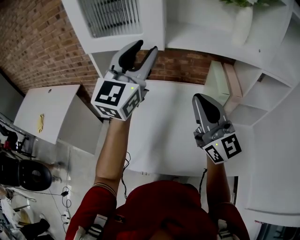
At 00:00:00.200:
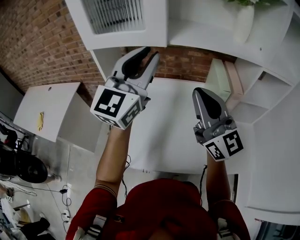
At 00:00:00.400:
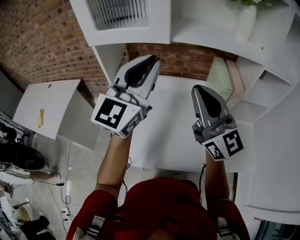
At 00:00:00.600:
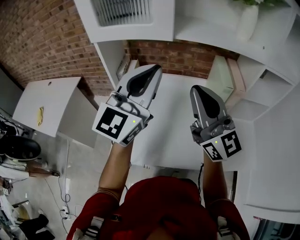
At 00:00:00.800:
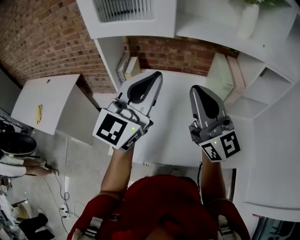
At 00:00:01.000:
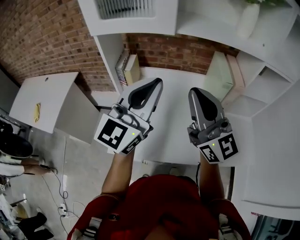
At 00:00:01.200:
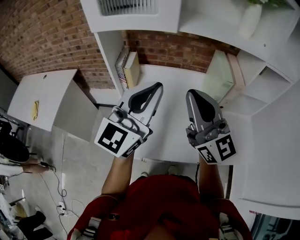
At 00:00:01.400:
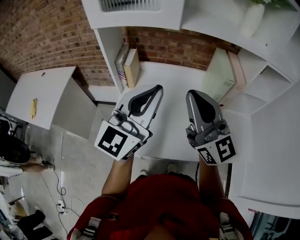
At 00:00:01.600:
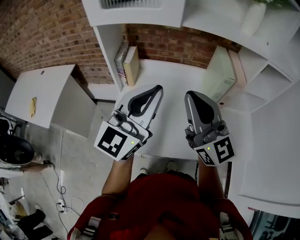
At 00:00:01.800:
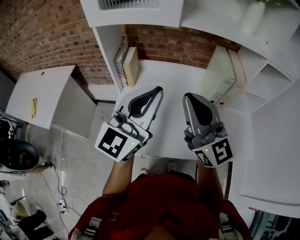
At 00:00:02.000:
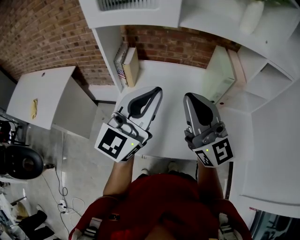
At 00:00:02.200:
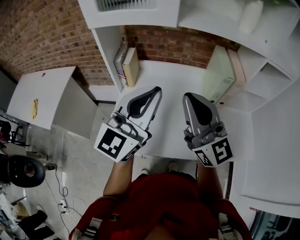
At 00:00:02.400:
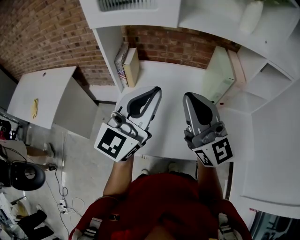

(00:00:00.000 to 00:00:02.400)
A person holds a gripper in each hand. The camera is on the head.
00:00:00.000 - 00:00:01.200: The right gripper heads to the left, covering about 5 cm. Meanwhile the left gripper is displaced backward and downward by roughly 15 cm, and closes its fingers.
00:00:01.200 - 00:00:02.400: There are only small adjustments of the grippers.

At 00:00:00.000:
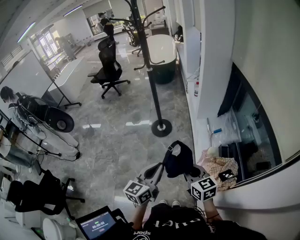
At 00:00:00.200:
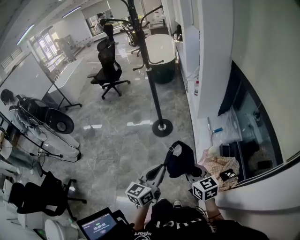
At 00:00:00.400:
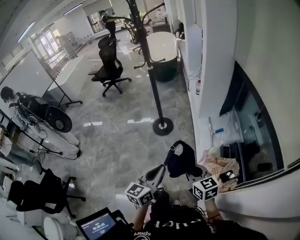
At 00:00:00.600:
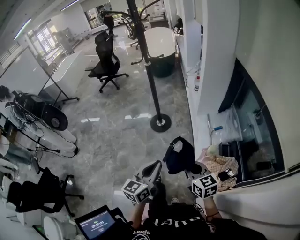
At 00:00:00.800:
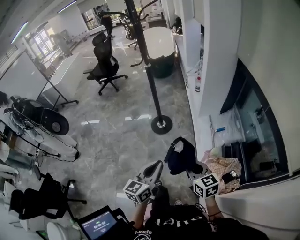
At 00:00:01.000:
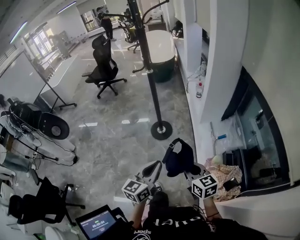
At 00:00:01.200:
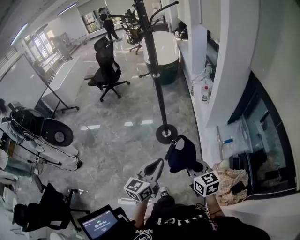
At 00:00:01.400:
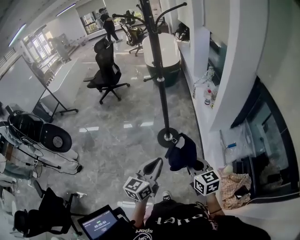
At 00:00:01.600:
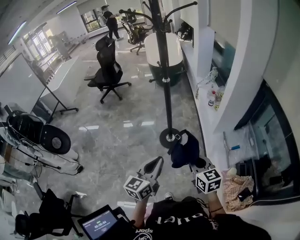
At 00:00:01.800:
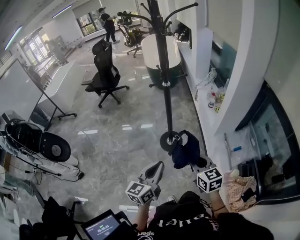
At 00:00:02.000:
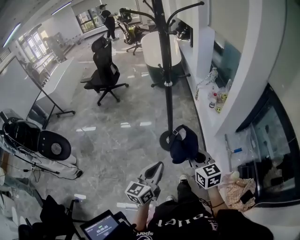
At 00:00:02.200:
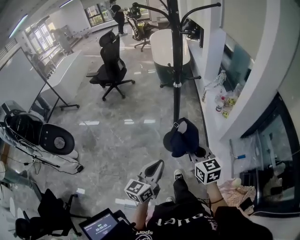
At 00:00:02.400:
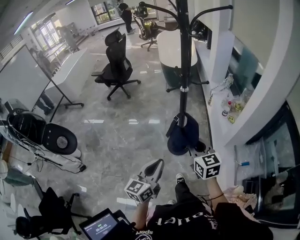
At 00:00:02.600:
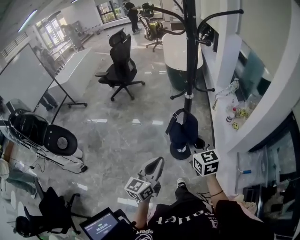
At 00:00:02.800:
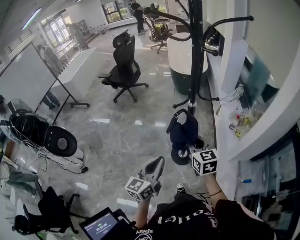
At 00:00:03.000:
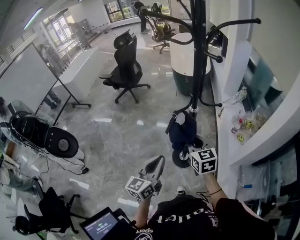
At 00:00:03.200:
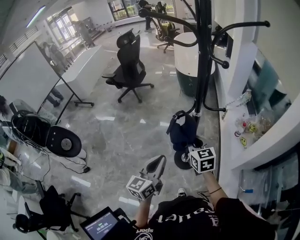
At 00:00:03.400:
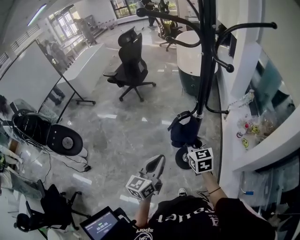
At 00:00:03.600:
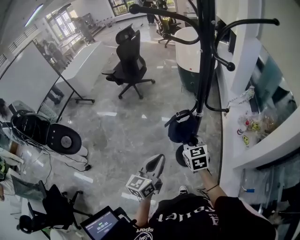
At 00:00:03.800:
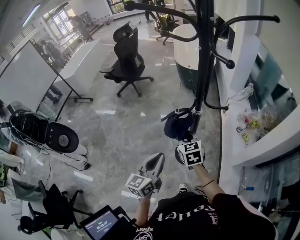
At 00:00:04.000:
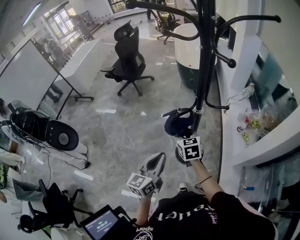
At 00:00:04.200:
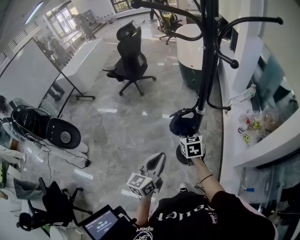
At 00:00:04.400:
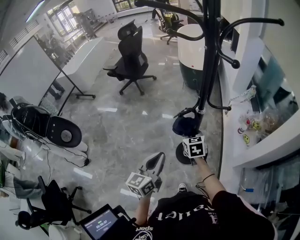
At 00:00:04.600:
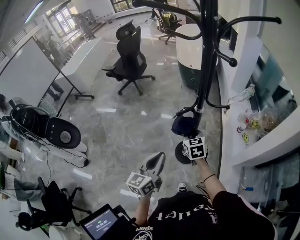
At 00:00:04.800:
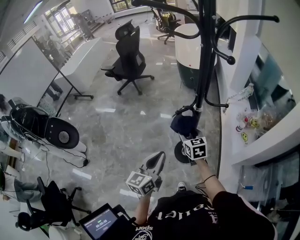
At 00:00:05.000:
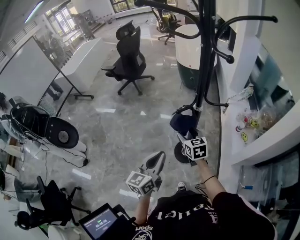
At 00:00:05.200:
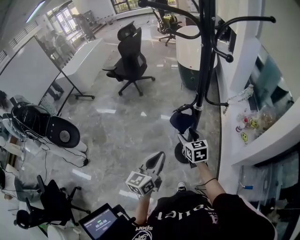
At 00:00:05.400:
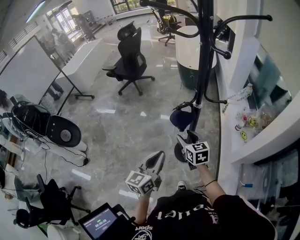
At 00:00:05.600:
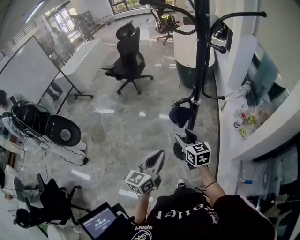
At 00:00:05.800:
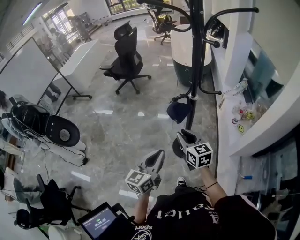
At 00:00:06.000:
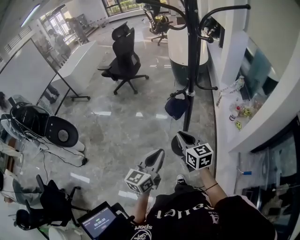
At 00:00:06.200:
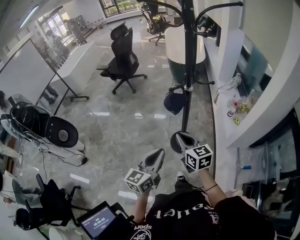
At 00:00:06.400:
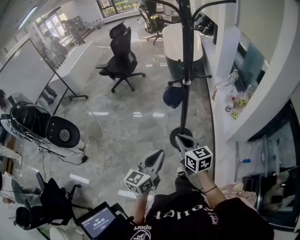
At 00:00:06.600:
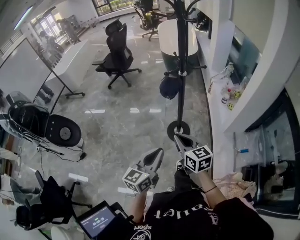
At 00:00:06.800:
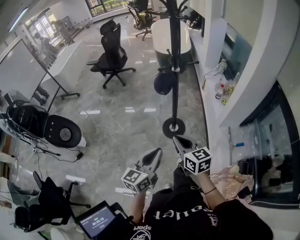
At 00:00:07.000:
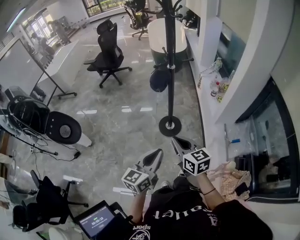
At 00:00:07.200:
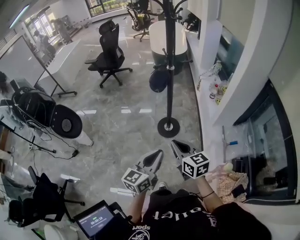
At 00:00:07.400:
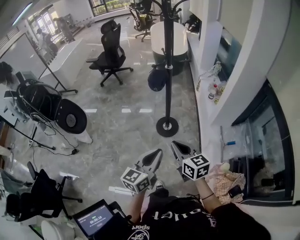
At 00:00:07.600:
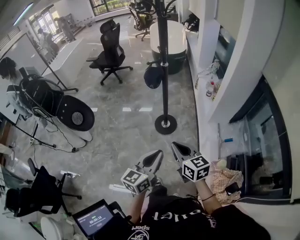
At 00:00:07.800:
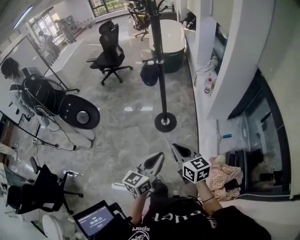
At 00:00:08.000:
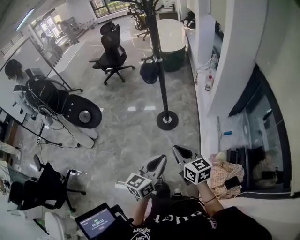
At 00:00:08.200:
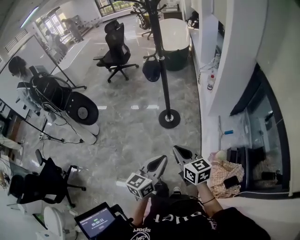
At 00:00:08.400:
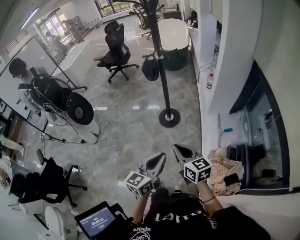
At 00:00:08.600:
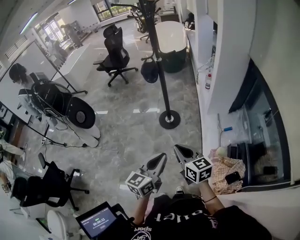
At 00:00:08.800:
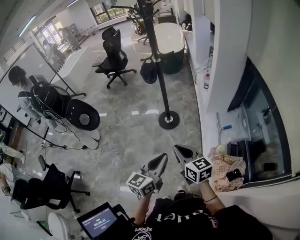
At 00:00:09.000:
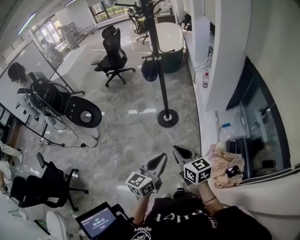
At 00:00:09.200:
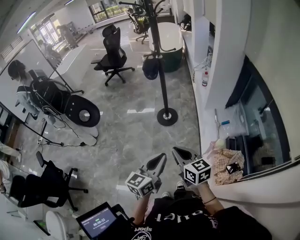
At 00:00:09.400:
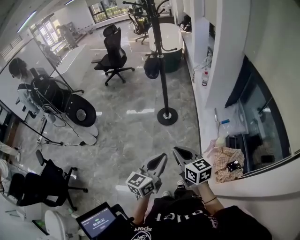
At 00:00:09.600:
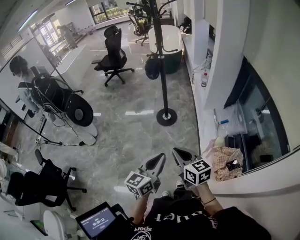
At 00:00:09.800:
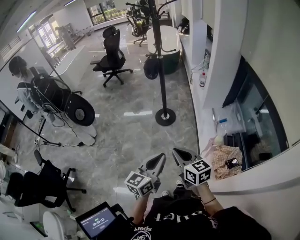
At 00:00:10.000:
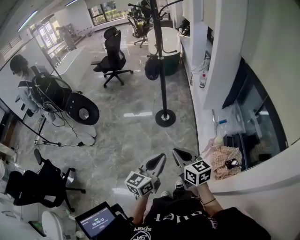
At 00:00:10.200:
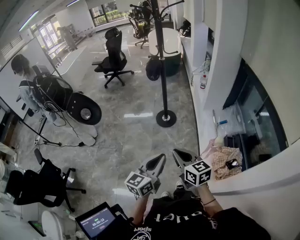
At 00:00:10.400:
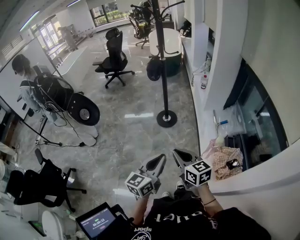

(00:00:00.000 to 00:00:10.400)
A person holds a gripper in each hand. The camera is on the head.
00:00:00.000 - 00:00:01.400: Both grippers travel together forward and to the left, some 30 cm.
00:00:01.400 - 00:00:03.000: The two grippers go some 35 cm forward.
00:00:03.000 - 00:00:04.400: The left gripper shifts by some 5 cm. Meanwhile the right gripper goes approximately 15 cm downward and forward.
00:00:04.400 - 00:00:06.000: The right gripper is displaced backward and upward by roughly 20 cm, rotates some 20 degrees, and opens, then closes once more. Meanwhile the left gripper travels backward by approximately 10 cm.
00:00:06.000 - 00:00:07.400: Both grippers move backward, about 30 cm.
00:00:07.400 - 00:00:09.000: The left gripper goes some 25 cm backward and to the right; the right gripper goes approximately 20 cm backward.
00:00:09.000 - 00:00:10.400: The two grippers go roughly 10 cm backward and to the left.

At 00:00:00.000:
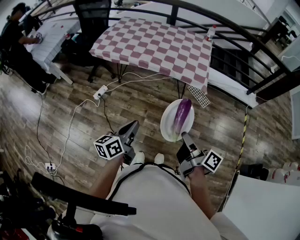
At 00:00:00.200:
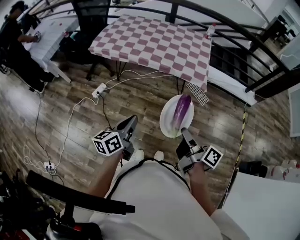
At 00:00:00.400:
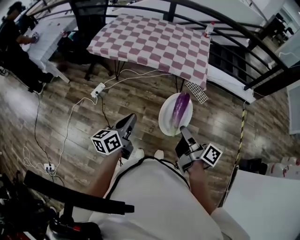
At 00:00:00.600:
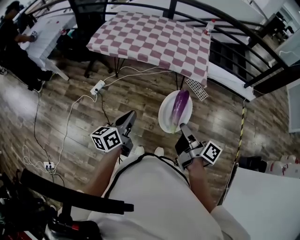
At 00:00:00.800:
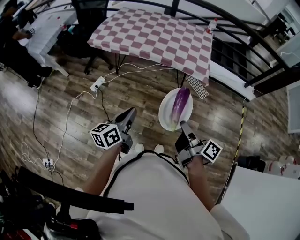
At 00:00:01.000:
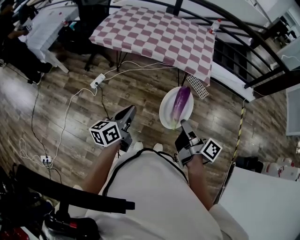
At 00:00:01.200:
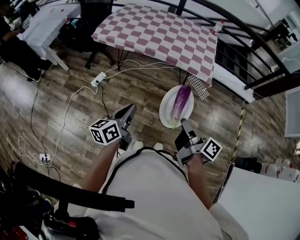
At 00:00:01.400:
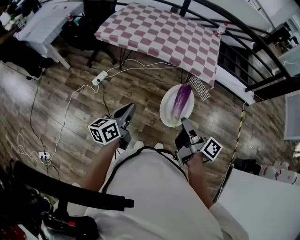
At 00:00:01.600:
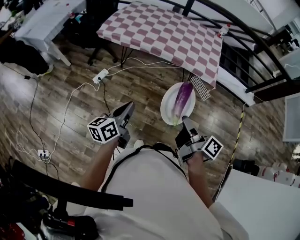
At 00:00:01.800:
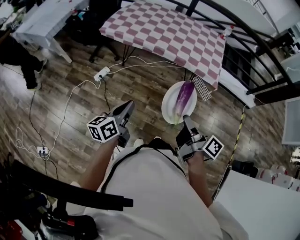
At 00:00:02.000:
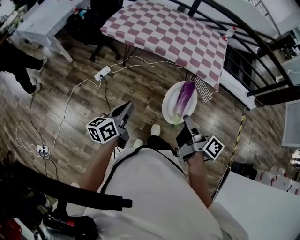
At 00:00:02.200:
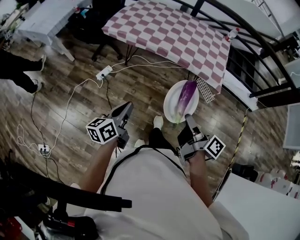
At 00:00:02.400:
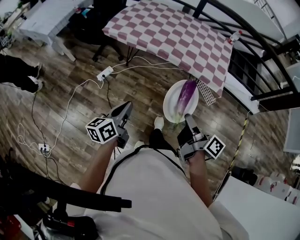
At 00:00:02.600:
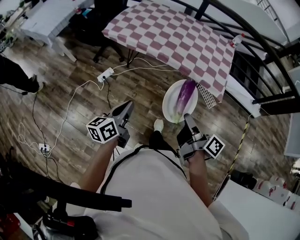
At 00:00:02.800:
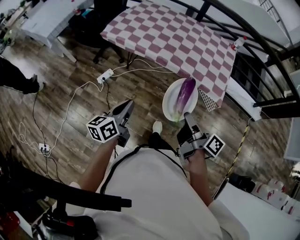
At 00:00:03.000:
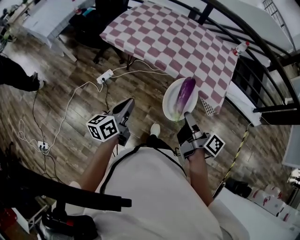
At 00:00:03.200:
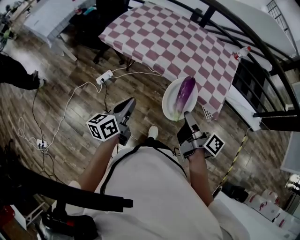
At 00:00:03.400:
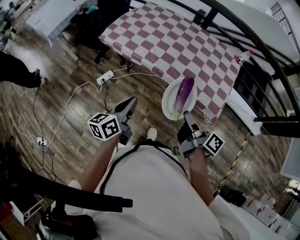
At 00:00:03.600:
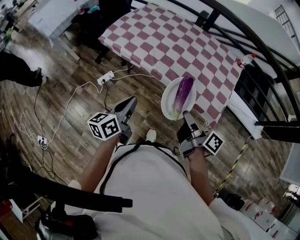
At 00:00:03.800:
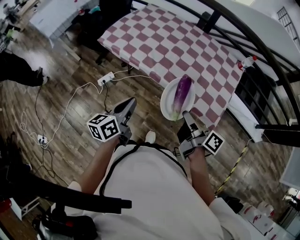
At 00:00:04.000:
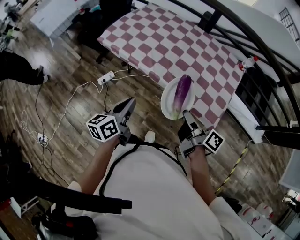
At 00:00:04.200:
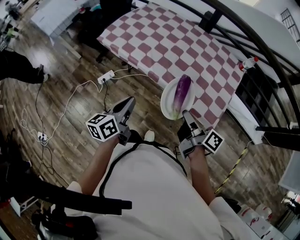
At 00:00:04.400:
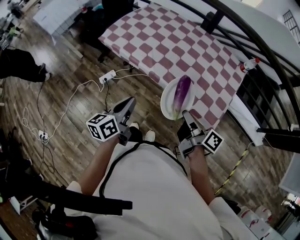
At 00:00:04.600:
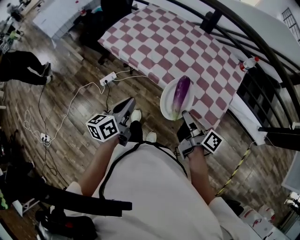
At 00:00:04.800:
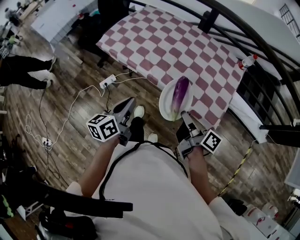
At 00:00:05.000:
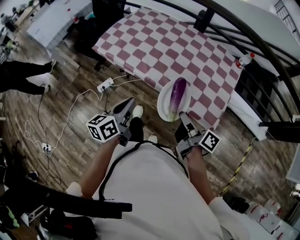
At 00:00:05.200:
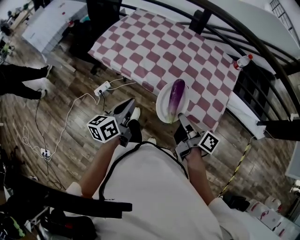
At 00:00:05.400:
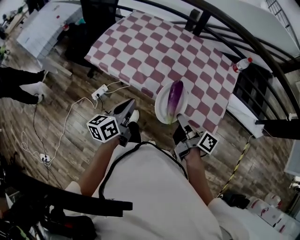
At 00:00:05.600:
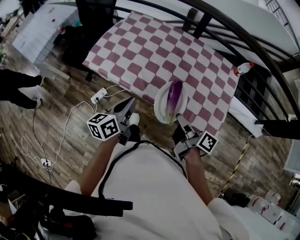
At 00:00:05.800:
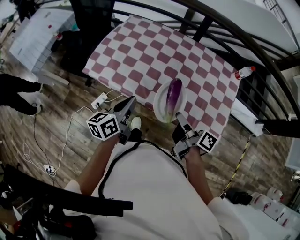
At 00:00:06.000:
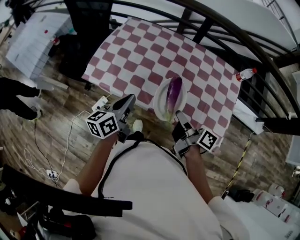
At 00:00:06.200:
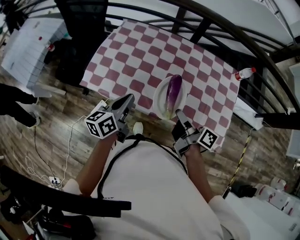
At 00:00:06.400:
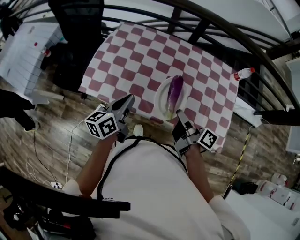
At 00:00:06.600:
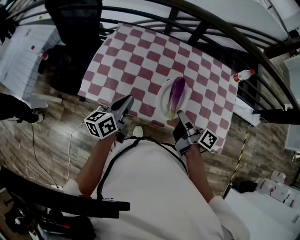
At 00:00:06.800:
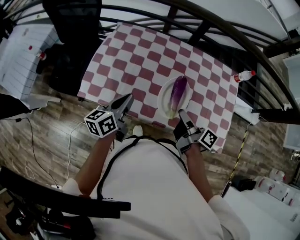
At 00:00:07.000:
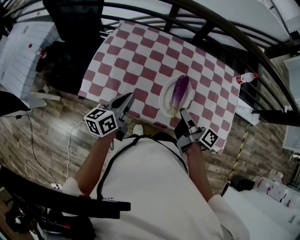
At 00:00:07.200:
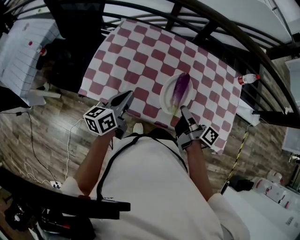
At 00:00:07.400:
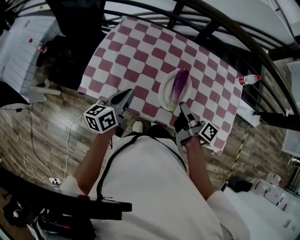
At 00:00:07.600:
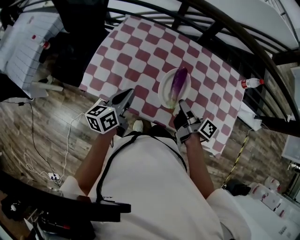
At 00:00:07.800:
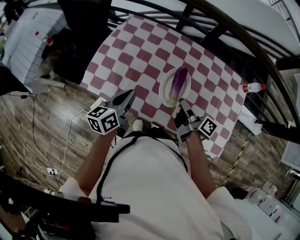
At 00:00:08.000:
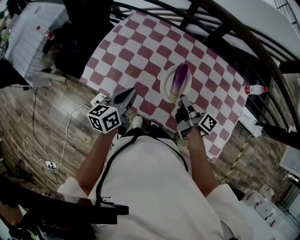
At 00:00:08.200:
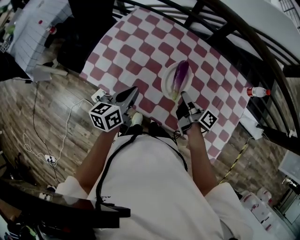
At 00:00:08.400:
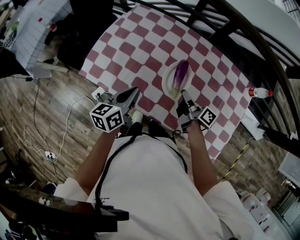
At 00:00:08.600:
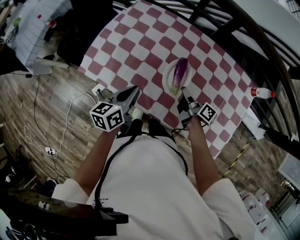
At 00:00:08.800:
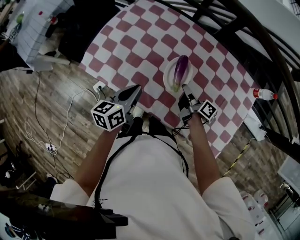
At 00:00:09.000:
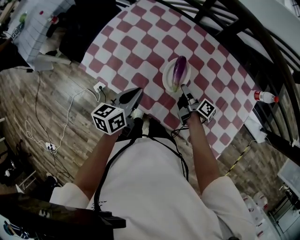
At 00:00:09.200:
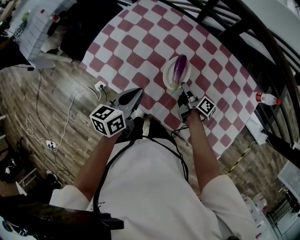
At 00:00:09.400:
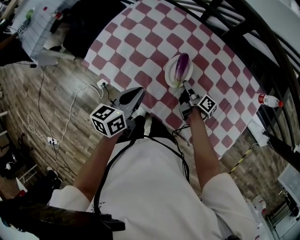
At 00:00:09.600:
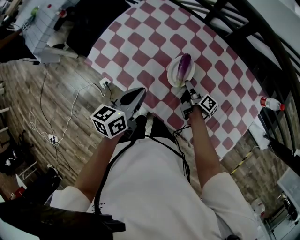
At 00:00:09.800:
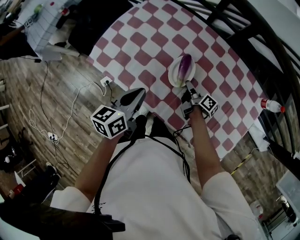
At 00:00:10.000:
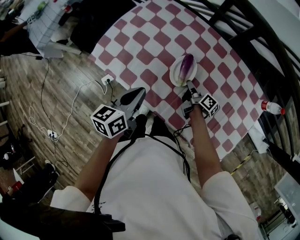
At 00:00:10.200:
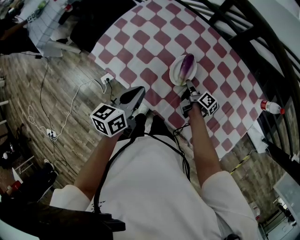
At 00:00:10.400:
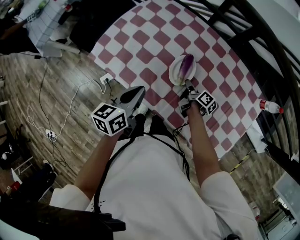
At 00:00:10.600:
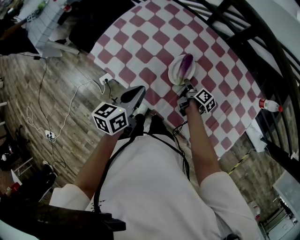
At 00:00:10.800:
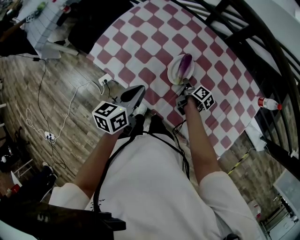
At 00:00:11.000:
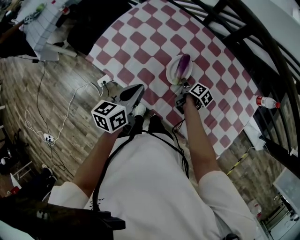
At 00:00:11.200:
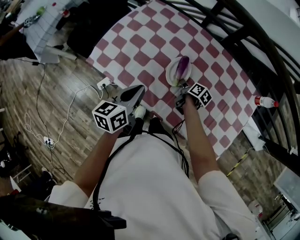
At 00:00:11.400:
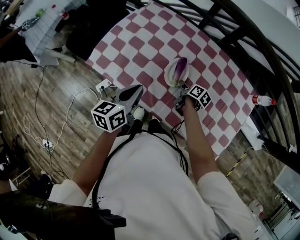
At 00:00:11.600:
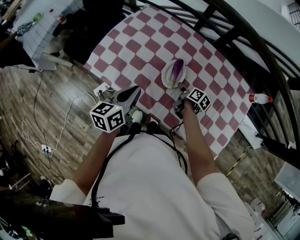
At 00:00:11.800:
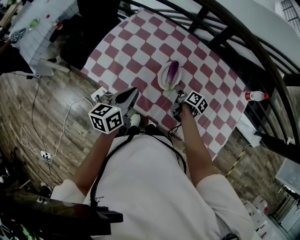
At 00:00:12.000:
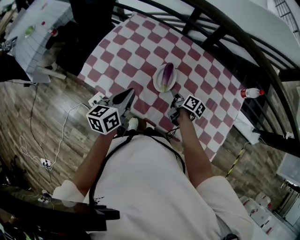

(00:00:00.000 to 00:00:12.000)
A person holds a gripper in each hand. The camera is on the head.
00:00:00.000 - 00:00:01.600: The left gripper ends up some 15 cm from where it was.
00:00:01.600 - 00:00:03.000: The left gripper shifts by some 20 cm.
00:00:03.000 - 00:00:04.400: The left gripper shifts by some 15 cm.
00:00:04.400 - 00:00:06.000: The left gripper shifts by approximately 30 cm.
00:00:06.000 - 00:00:07.600: The left gripper changes place by approximately 15 cm.
00:00:07.600 - 00:00:09.000: The left gripper changes place by approximately 10 cm.
